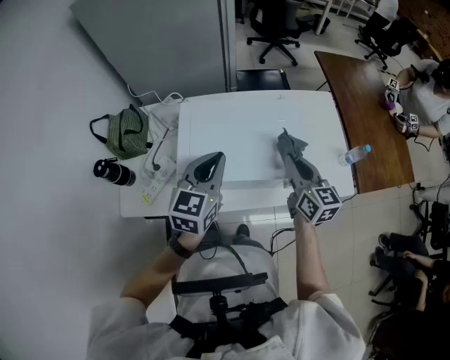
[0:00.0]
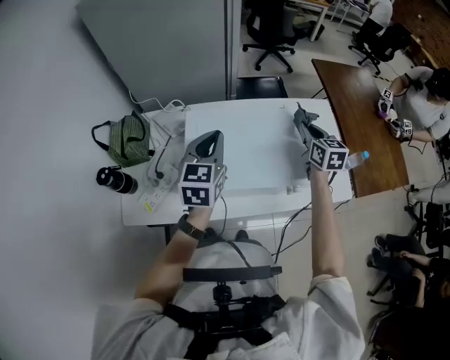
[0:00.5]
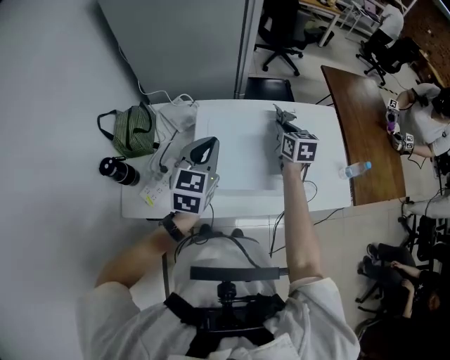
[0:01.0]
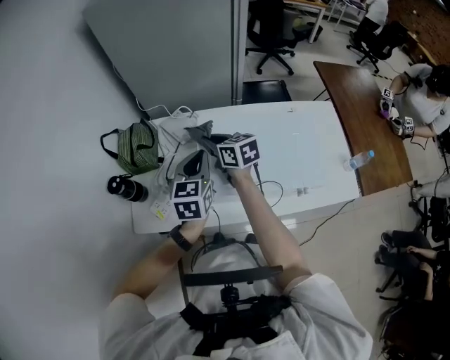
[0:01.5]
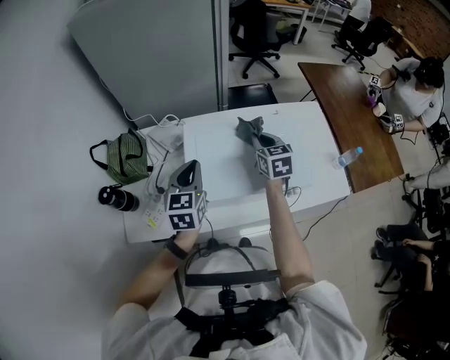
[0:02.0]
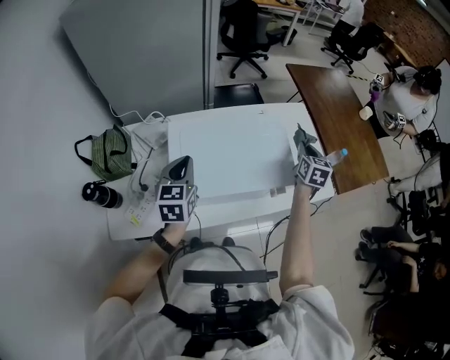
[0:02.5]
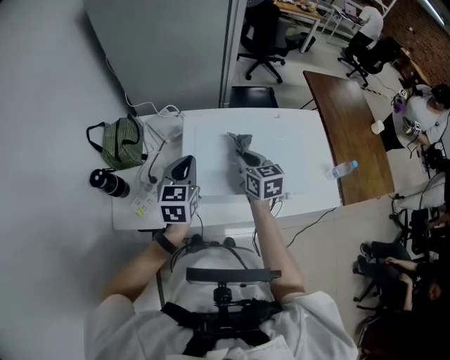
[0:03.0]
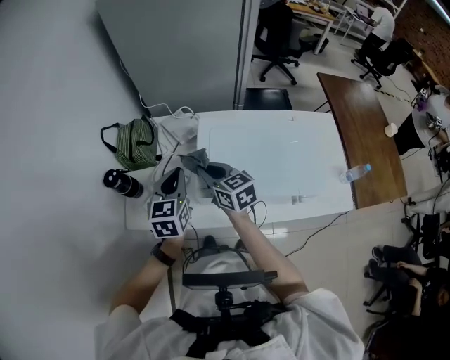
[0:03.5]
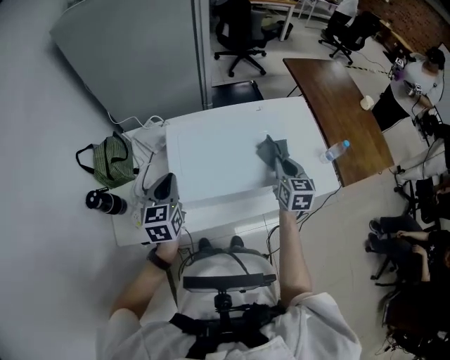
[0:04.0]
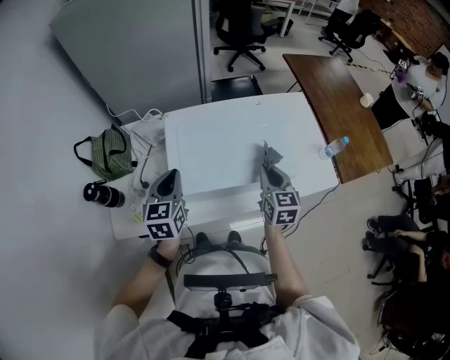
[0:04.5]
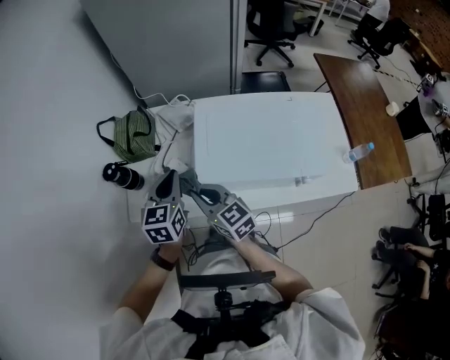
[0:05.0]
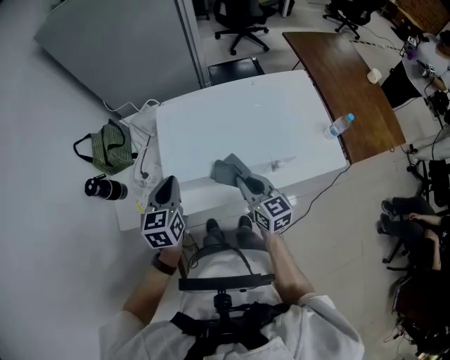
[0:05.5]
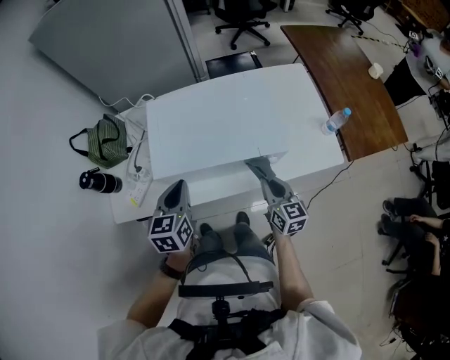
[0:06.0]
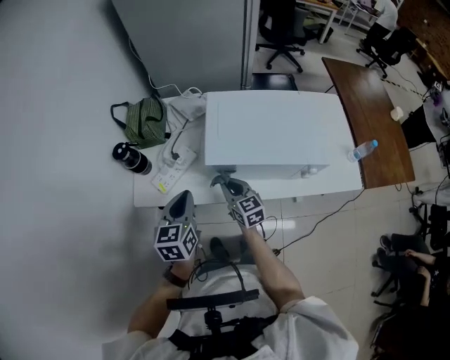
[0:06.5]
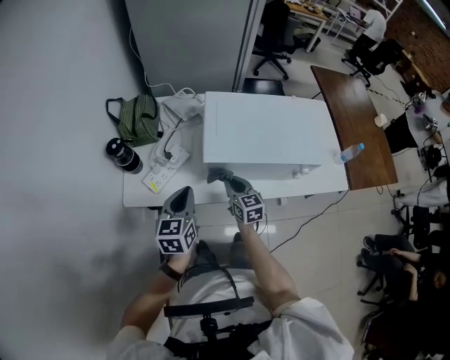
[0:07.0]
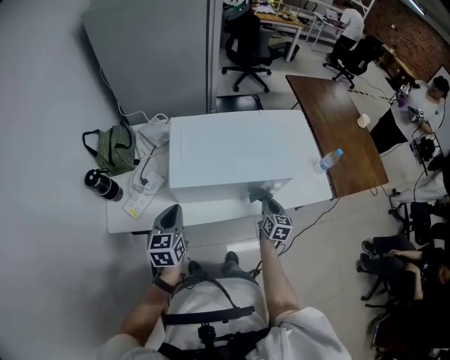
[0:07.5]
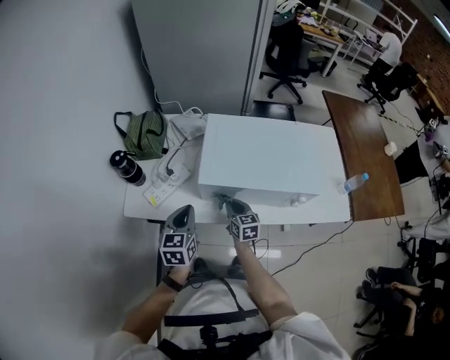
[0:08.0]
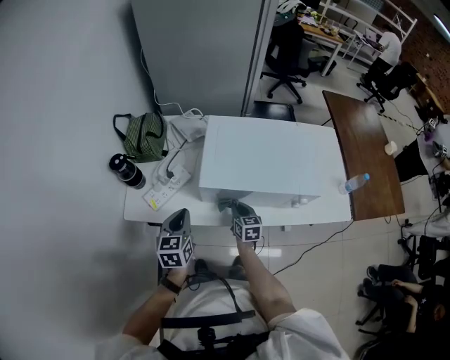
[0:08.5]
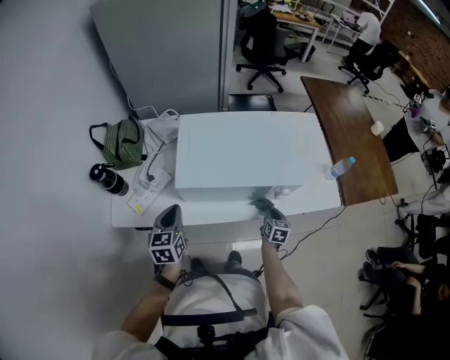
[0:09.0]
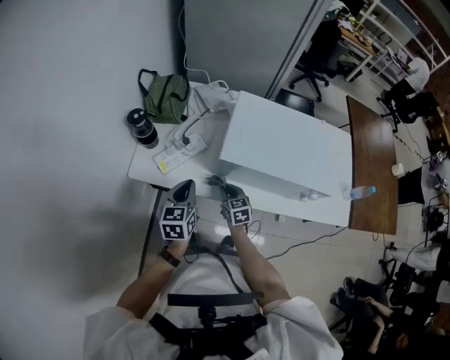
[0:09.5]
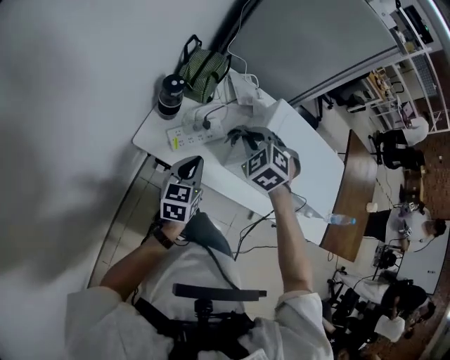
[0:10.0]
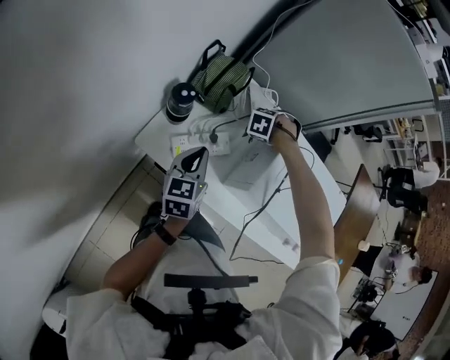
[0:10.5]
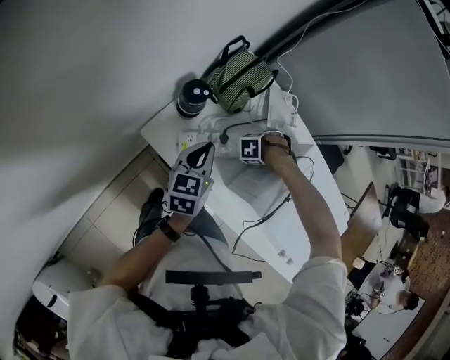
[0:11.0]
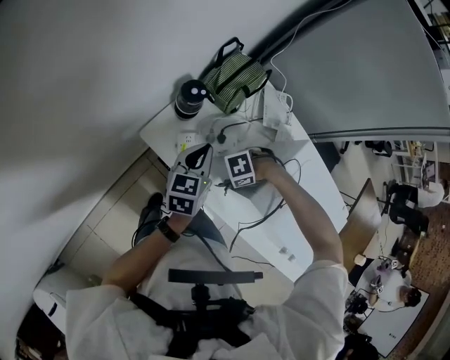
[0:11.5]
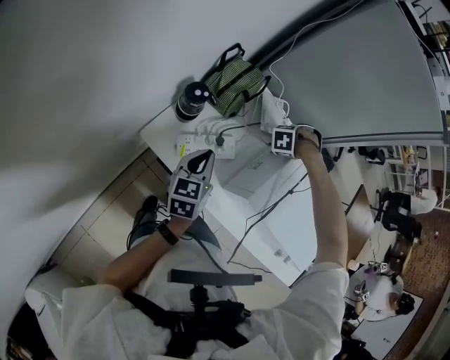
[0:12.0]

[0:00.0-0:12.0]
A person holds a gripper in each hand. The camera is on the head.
0:00.0 to 0:02.0: The left gripper travels to the left and downward by approximately 15 cm. The right gripper shifts some 15 cm forward and downward, moves approximately 35 cm to the left and comes back, and turns by some 20 degrees.
0:04.0 to 0:06.0: The left gripper changes place by approximately 20 cm.
0:06.0 to 0:08.0: The right gripper goes left and right, about 35 cm each way, reversing 2 times; the left gripper moves left and right over some 25 cm, changing direction 2 times.
0:08.0 to 0:10.0: The left gripper ends up approximately 25 cm from where it was. The right gripper shifts by about 35 cm, and rotates around the line of its fingers by approximately 80 degrees, counterclockwise from behind.
0:10.0 to 0:12.0: The right gripper changes place by some 30 cm, and turns by roughly 70 degrees, while the left gripper moves some 15 cm.

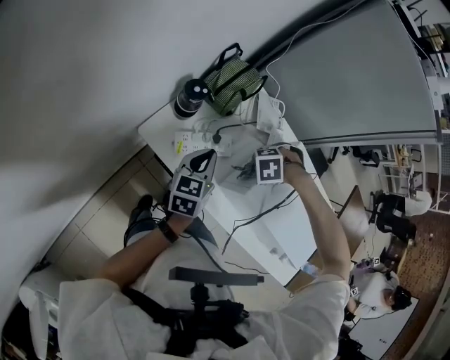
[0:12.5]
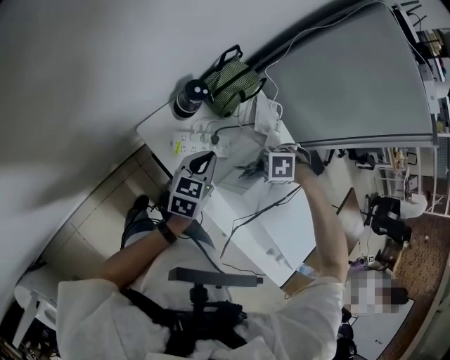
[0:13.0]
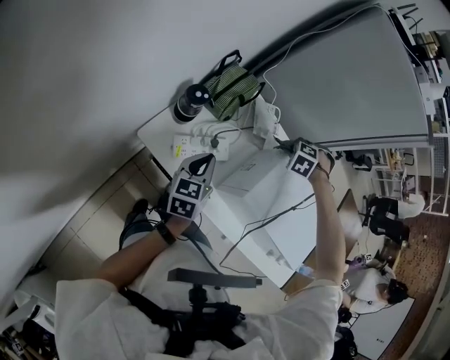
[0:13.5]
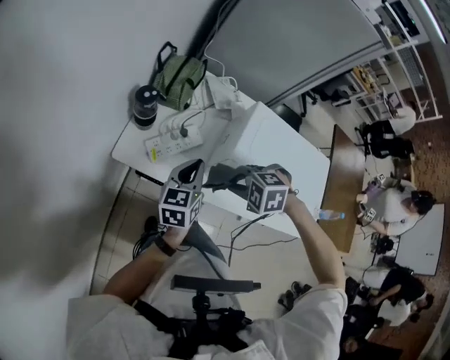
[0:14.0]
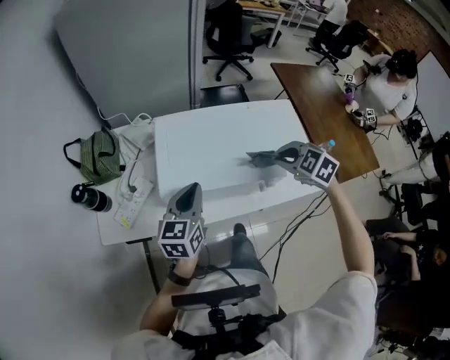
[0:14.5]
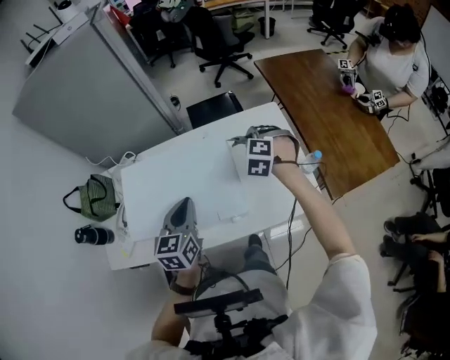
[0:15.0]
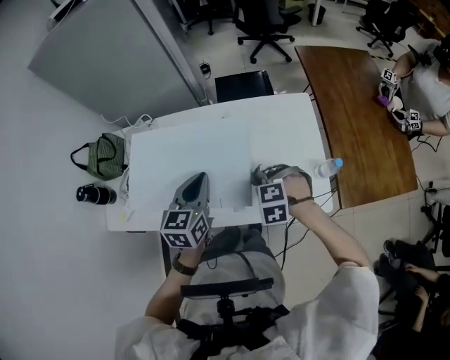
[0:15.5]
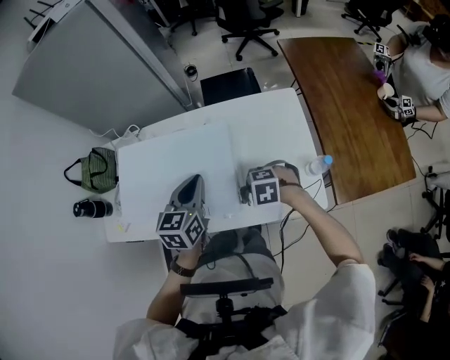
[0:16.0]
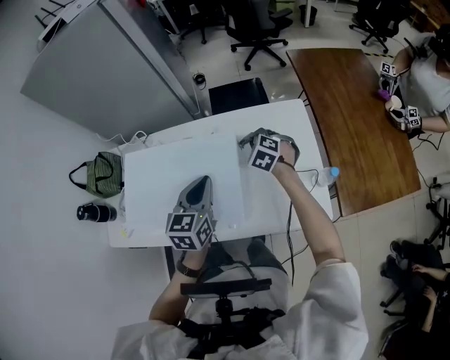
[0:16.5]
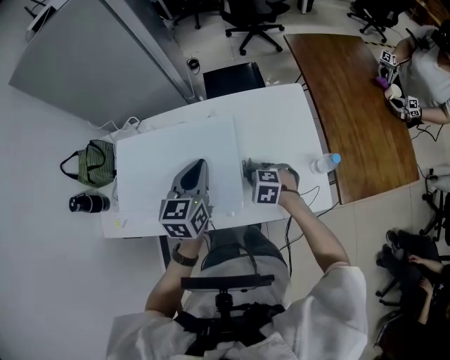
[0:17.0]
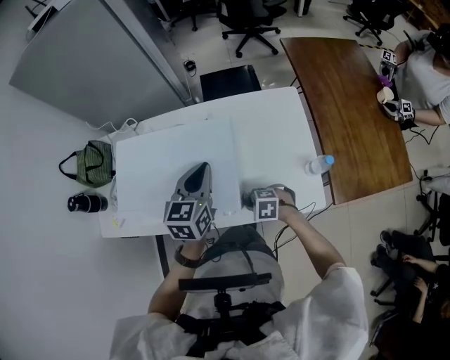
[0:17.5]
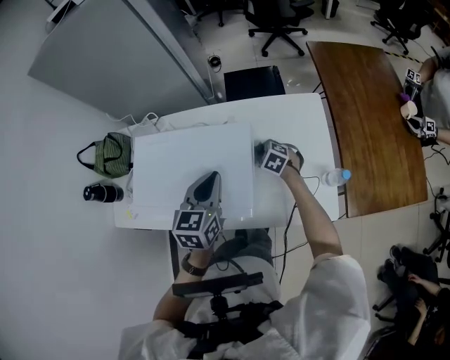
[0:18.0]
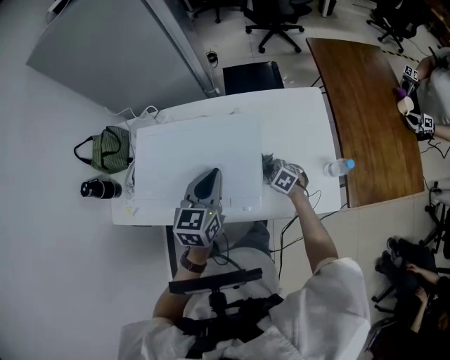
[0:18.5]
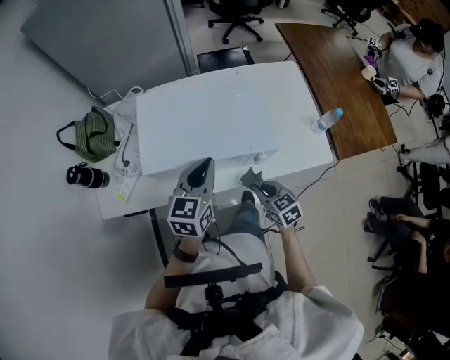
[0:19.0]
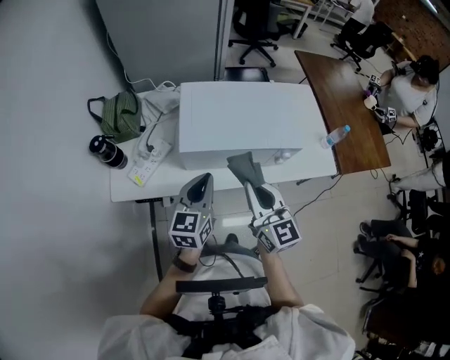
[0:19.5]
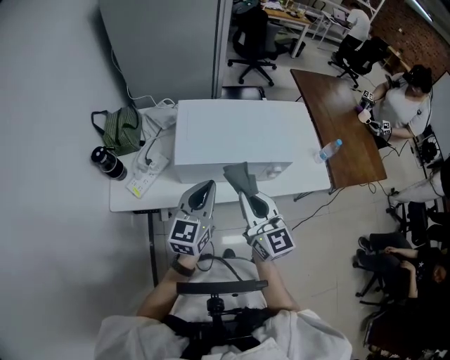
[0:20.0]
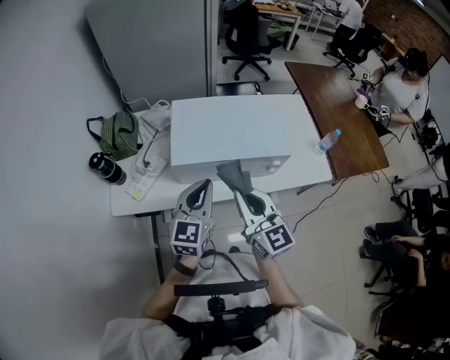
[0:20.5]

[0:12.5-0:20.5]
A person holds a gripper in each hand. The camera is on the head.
0:12.5 to 0:14.5: Both grippers are carried approximately 40 cm. The right gripper rotates some 90 degrees. Meanwhile the left gripper turns by about 40 degrees.
0:14.5 to 0:16.5: The pair of grippers is taken some 40 cm.
0:16.5 to 0:18.5: The right gripper shifts by roughly 20 cm, and turns by some 20 degrees. Meanwhile the left gripper changes place by about 5 cm.
0:18.5 to 0:20.5: The two grippers travel together, approximately 50 cm. The right gripper points its fingers approximately 60 degrees further upward.

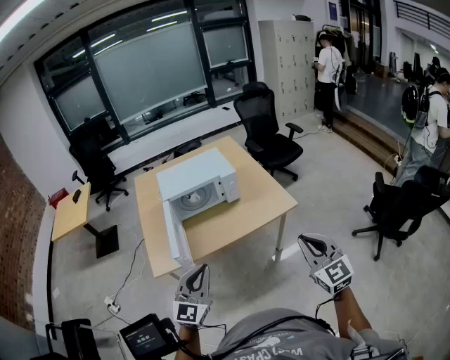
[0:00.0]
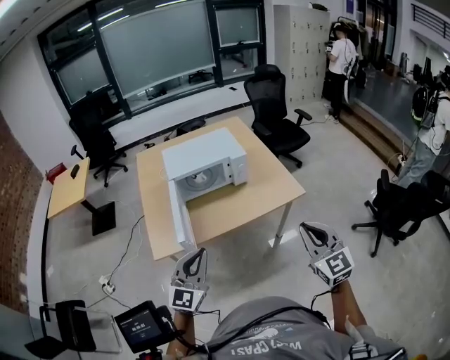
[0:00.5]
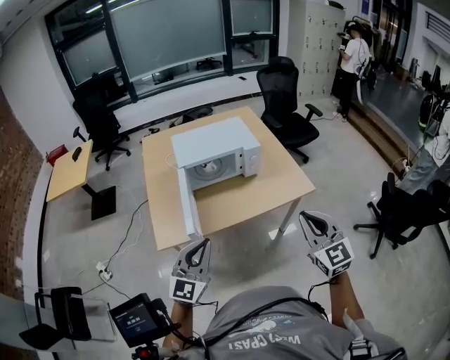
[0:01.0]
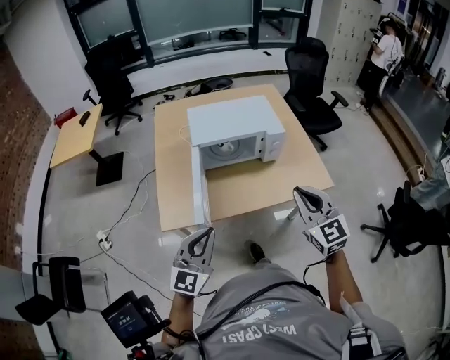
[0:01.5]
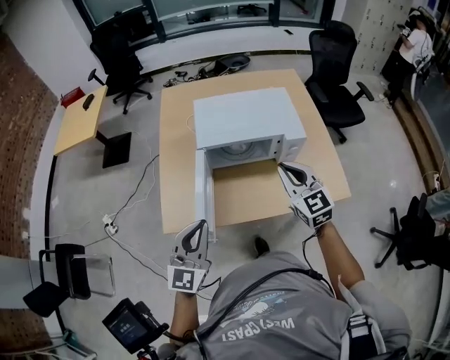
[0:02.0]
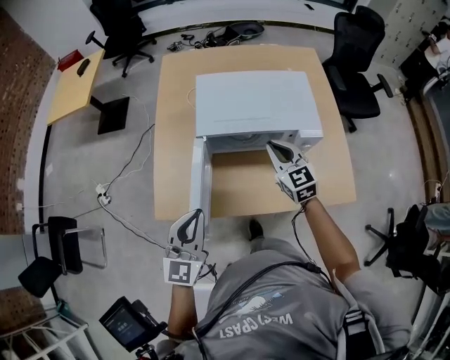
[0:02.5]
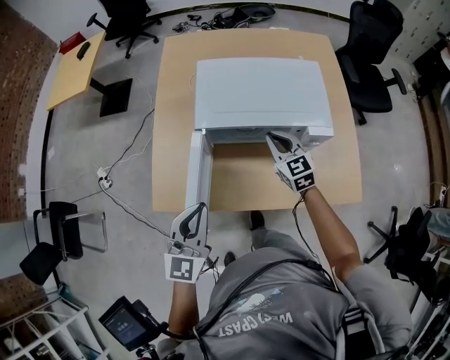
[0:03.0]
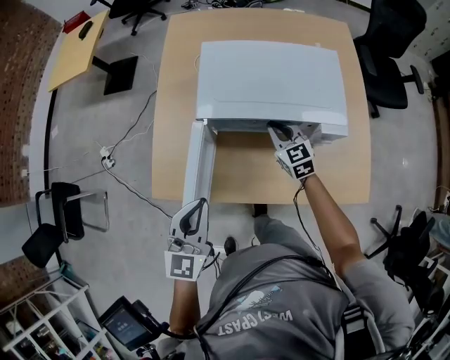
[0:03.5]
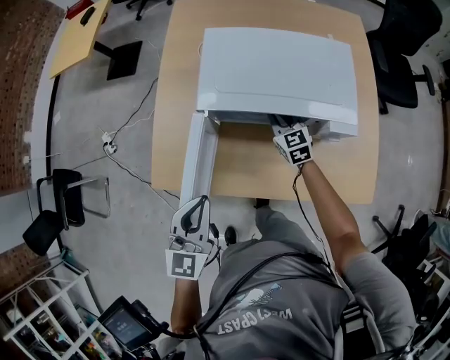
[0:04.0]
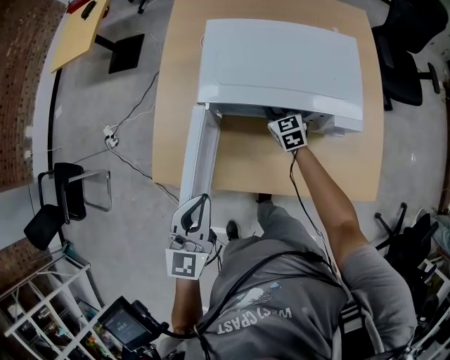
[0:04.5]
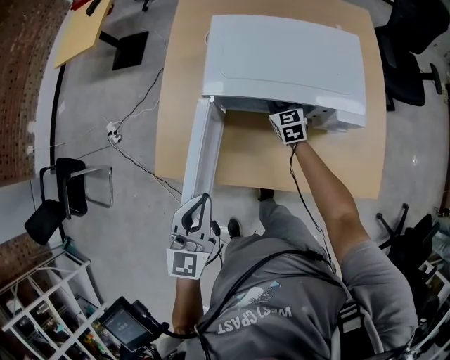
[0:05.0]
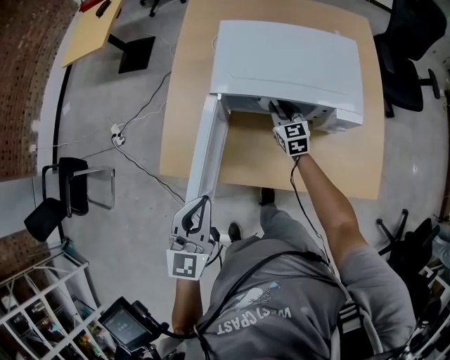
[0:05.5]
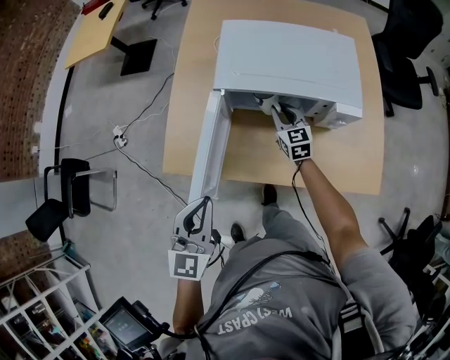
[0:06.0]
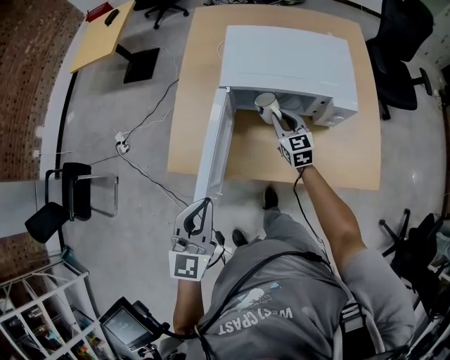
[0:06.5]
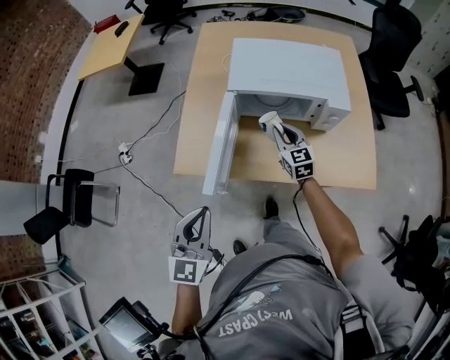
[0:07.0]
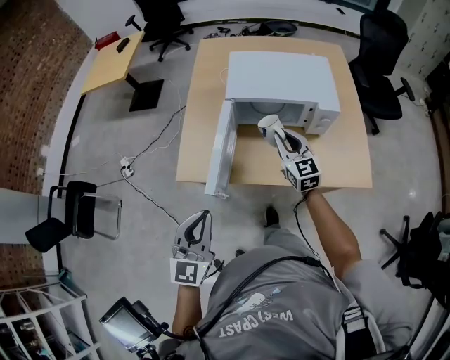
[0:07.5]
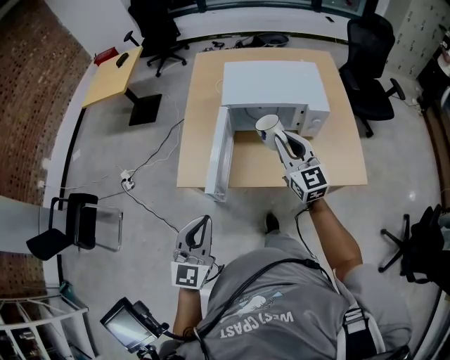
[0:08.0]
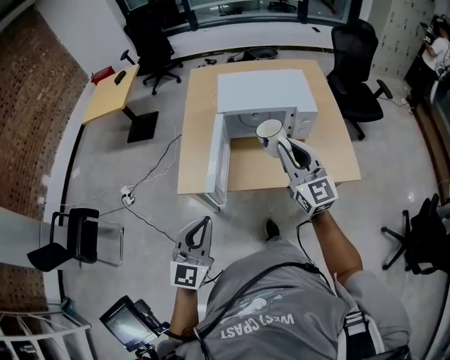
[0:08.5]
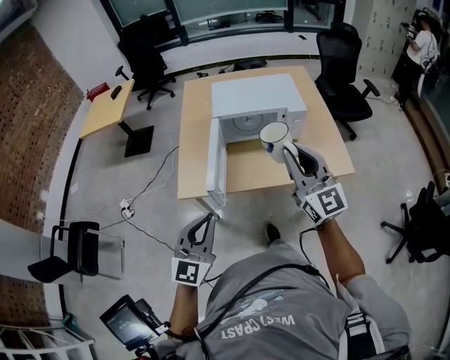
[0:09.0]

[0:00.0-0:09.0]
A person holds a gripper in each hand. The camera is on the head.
0:00.0 to 0:02.0: The right gripper travels forward and to the left by approximately 50 cm, and turns by some 20 degrees. Meanwhile the left gripper is displaced forward and to the left by about 30 cm.
0:02.0 to 0:04.5: The left gripper is displaced forward and downward by approximately 15 cm, and changes its angle by approximately 30 degrees. The right gripper shifts roughly 40 cm downward and forward, and changes its angle by approximately 20 degrees.
0:04.5 to 0:07.0: The right gripper heads backward and upward, covering approximately 20 cm, while the left gripper is displaced backward and to the left by about 20 cm.
0:07.0 to 0:09.0: The left gripper shifts some 15 cm backward and upward, and rotates some 20 degrees. The right gripper heads backward and upward, covering approximately 40 cm, and points its fingers approximately 30 degrees further upward.
